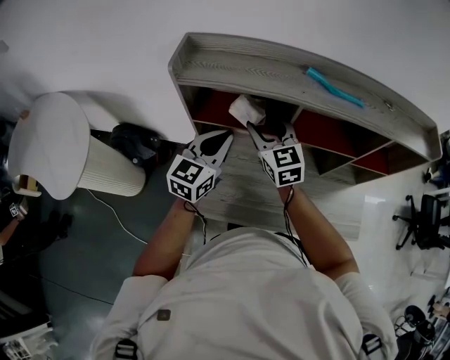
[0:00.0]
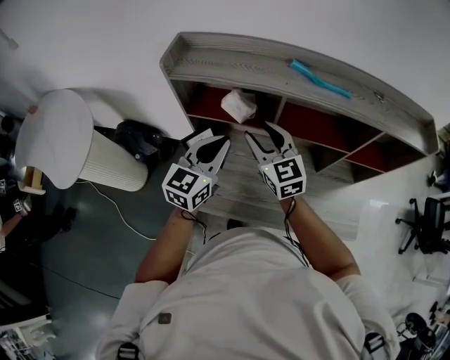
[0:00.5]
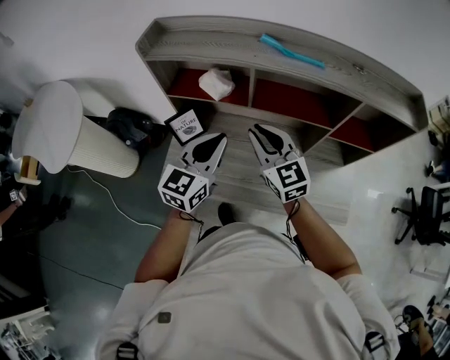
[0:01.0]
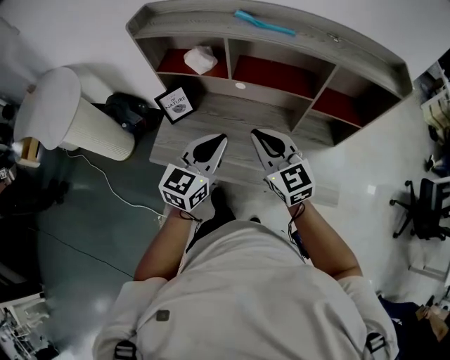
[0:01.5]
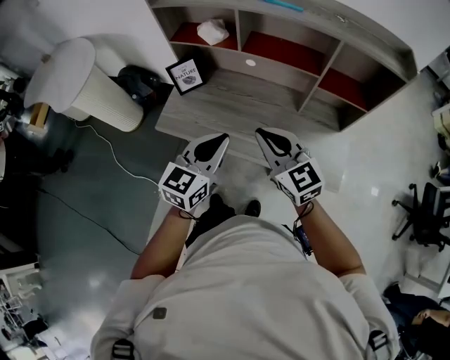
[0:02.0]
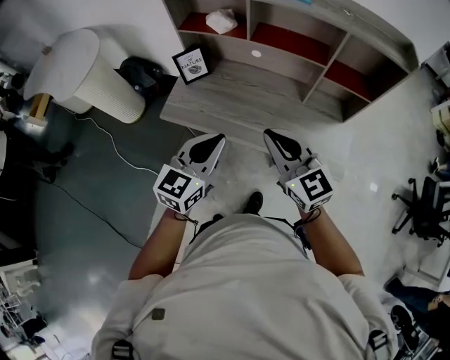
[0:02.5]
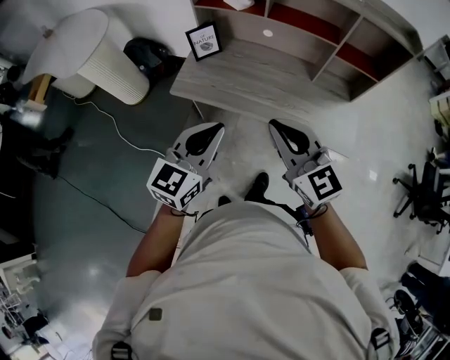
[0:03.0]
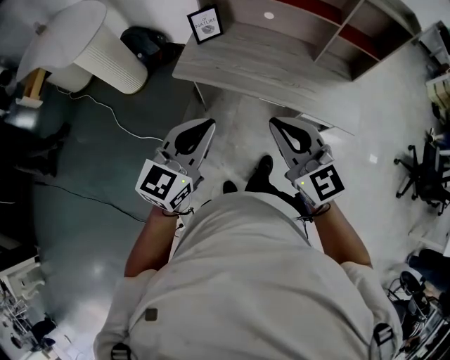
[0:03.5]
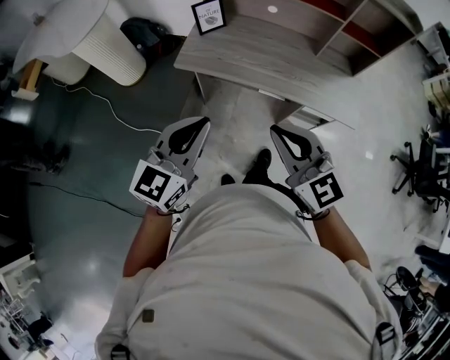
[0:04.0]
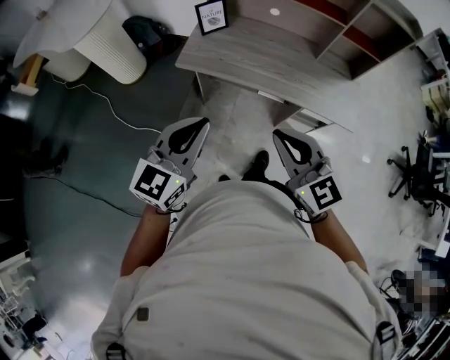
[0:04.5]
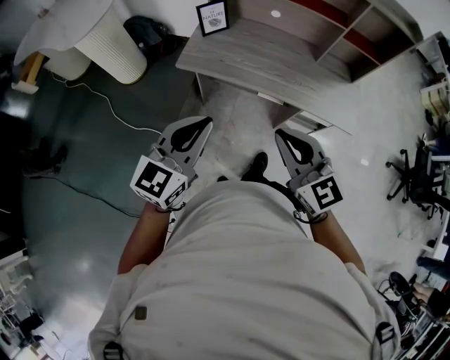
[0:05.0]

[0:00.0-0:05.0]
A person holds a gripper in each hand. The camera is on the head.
0:00.0 to 0:02.5: The two grippers travel together, backward, about 40 cm. The right gripper rotates some 20 degrees, and closes up.
0:02.5 to 0:05.0: The right gripper goes some 25 cm backward and to the left. Meanwhile the left gripper moves to the left and backward, approximately 25 cm.

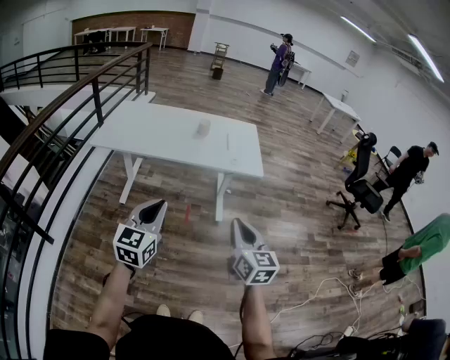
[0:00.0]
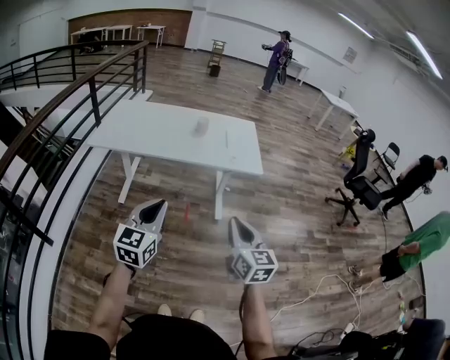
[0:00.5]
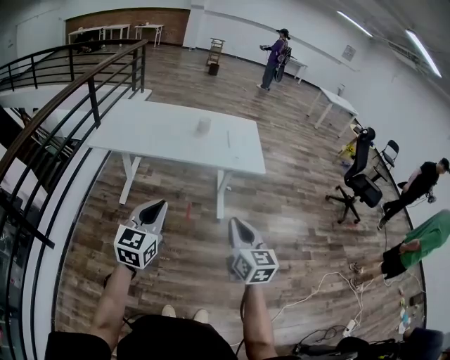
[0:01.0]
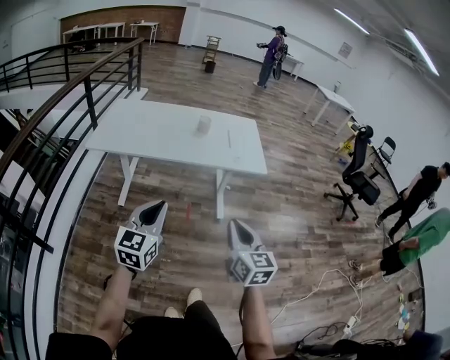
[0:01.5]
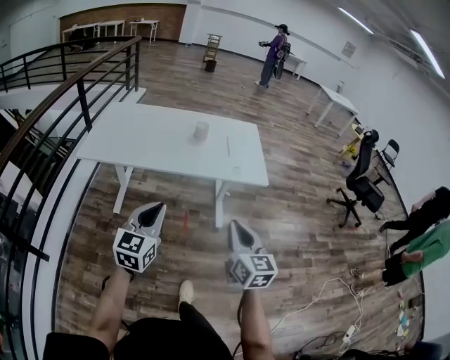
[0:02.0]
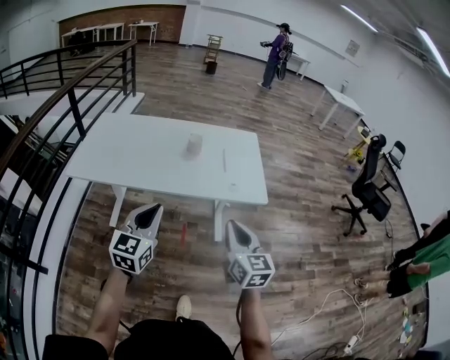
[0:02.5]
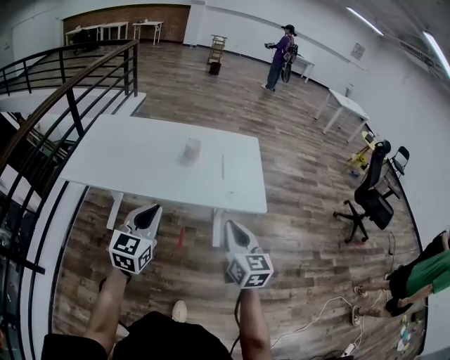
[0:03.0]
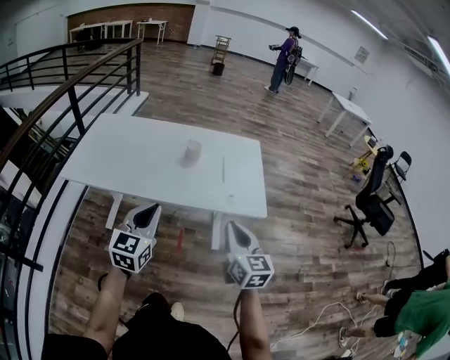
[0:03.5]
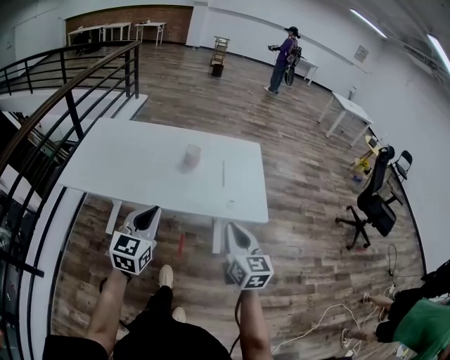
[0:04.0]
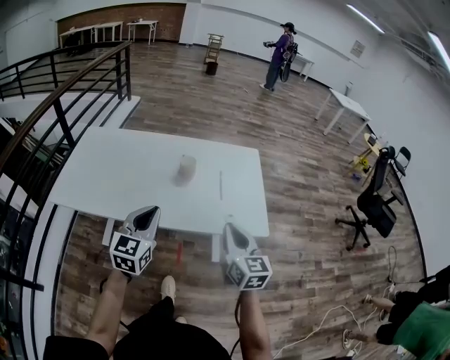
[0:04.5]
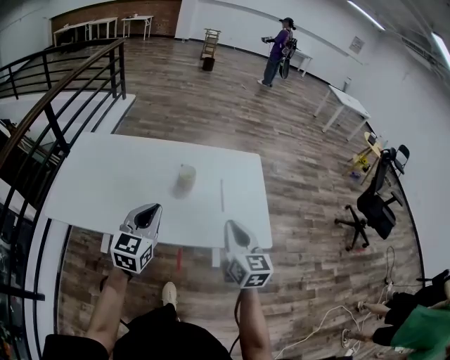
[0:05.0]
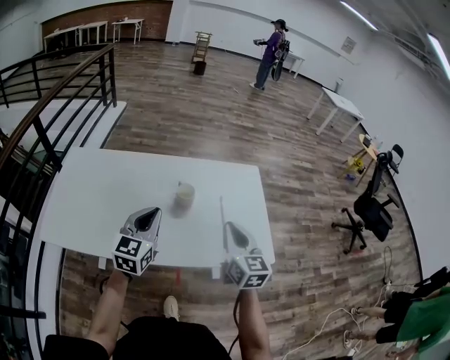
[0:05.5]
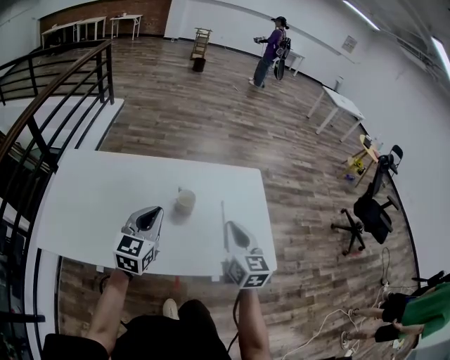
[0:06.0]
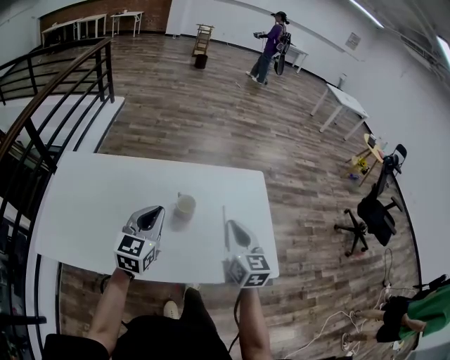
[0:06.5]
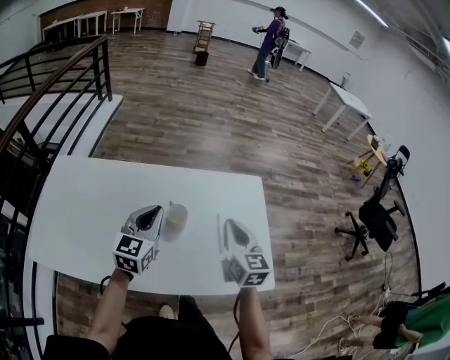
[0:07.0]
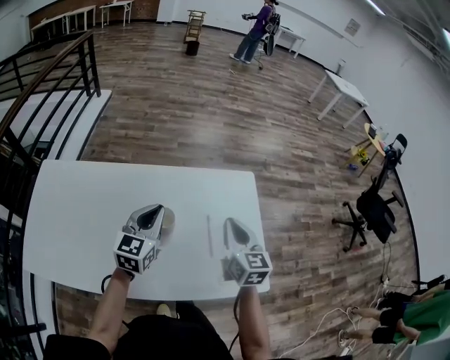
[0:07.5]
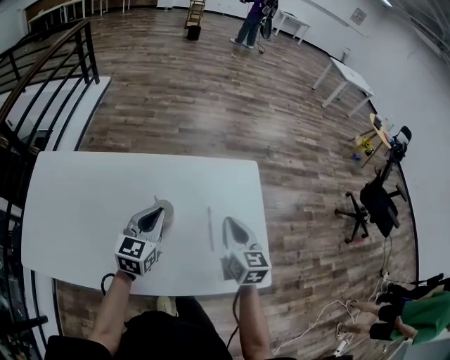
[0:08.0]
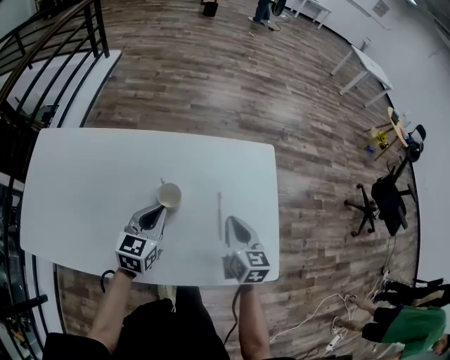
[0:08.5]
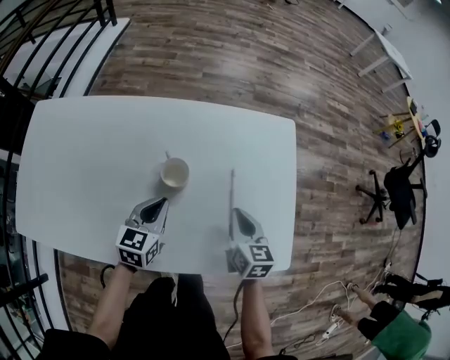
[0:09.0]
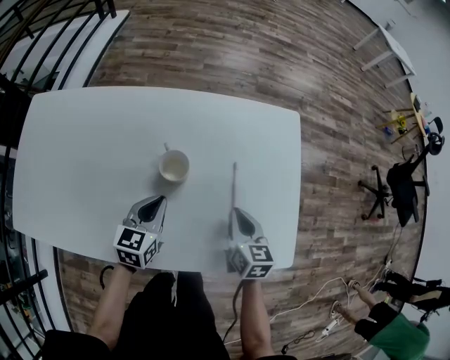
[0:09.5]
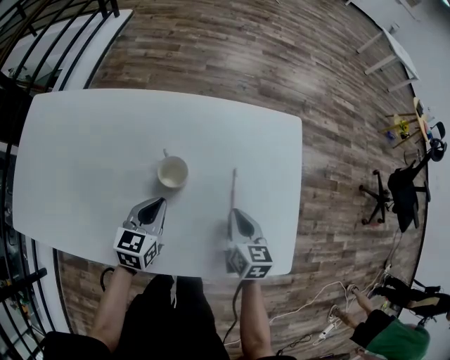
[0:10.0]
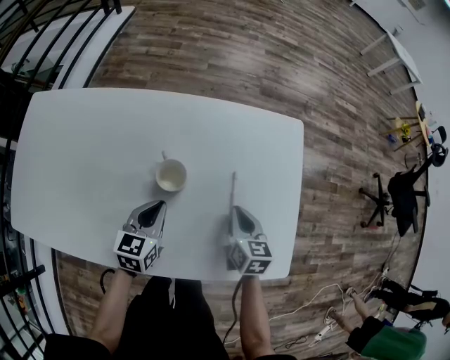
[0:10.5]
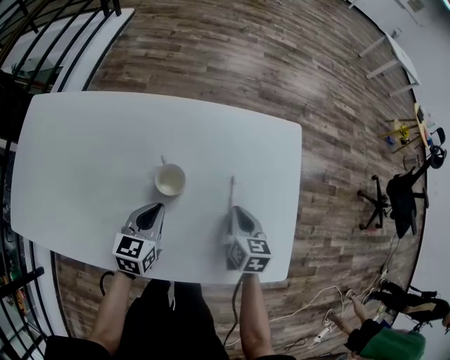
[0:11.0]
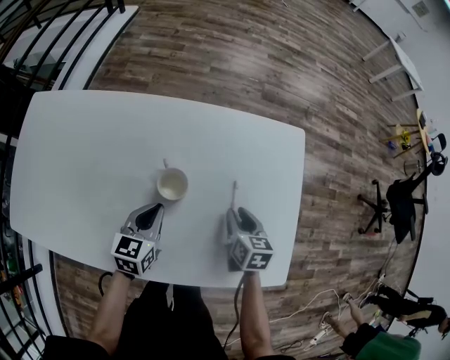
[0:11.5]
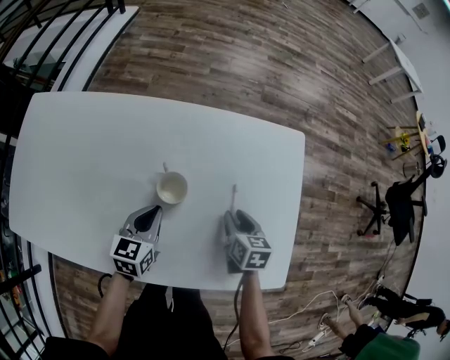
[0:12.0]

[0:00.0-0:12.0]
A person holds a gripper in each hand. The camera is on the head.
0:00.0 to 0:02.0: Both grippers travel together forward, some 15 cm.
0:02.0 to 0:04.0: The two grippers go roughly 20 cm forward.
0:04.0 to 0:06.0: Both grippers move forward, approximately 30 cm.
0:06.0 to 0:08.0: Both grippers move forward, downward and to the right, some 20 cm.
0:08.0 to 0:10.0: Both grippers move downward, roughly 15 cm.
0:10.0 to 0:12.0: The right gripper goes about 5 cm downward, and opens up.

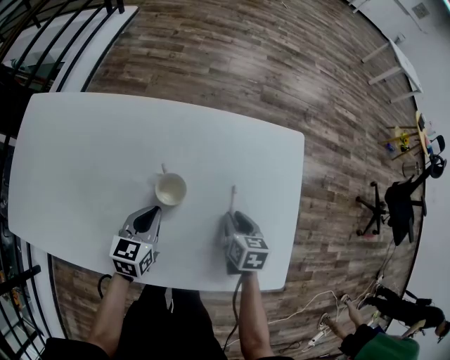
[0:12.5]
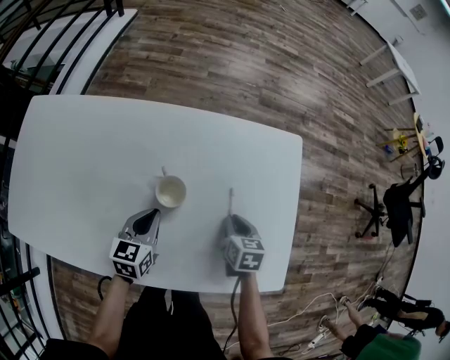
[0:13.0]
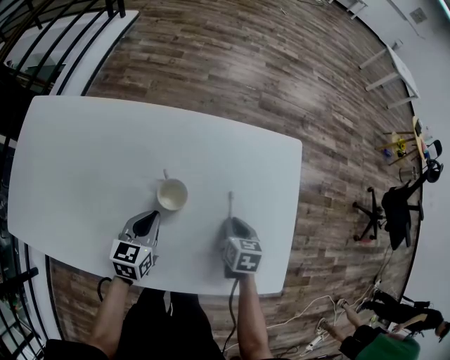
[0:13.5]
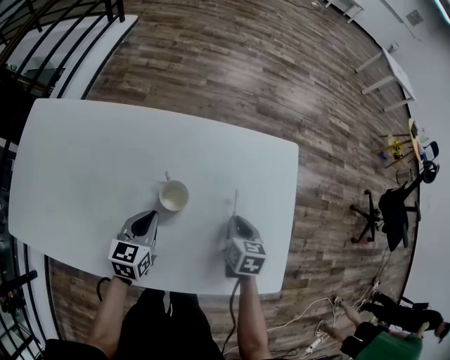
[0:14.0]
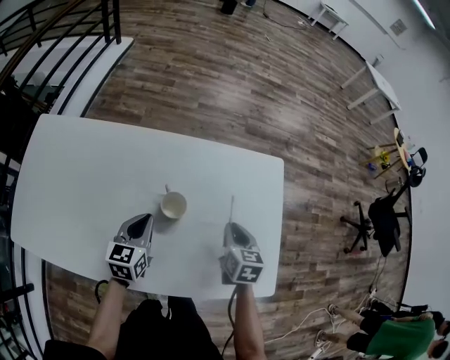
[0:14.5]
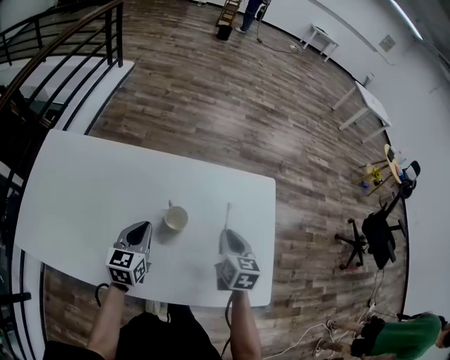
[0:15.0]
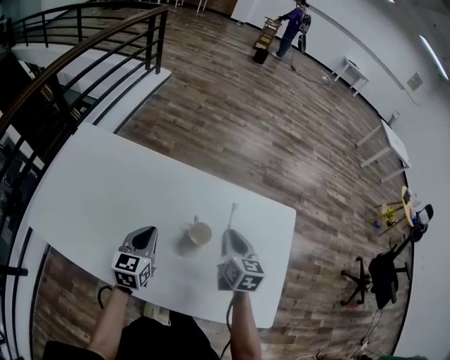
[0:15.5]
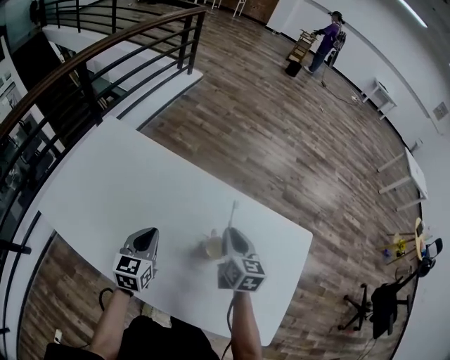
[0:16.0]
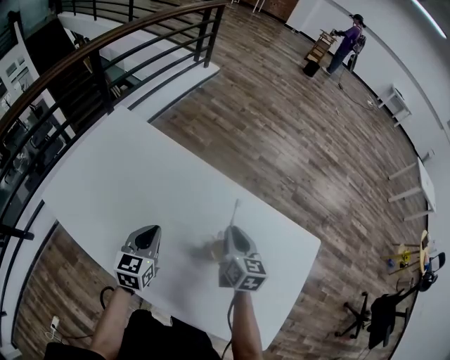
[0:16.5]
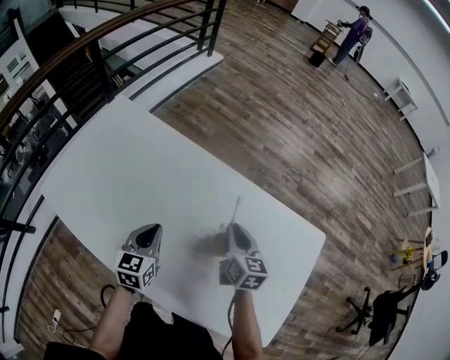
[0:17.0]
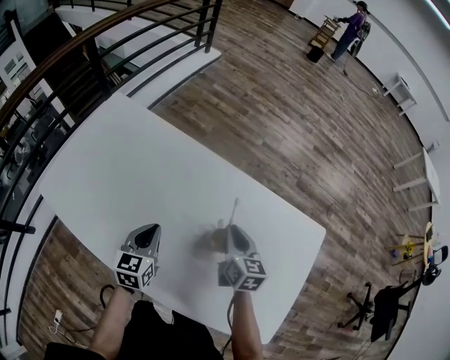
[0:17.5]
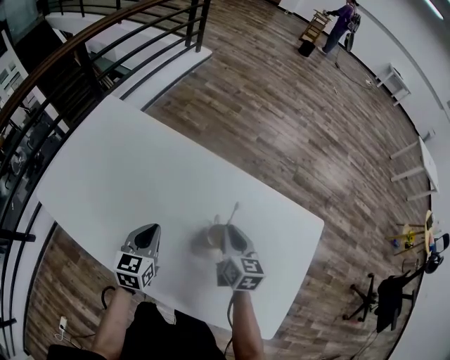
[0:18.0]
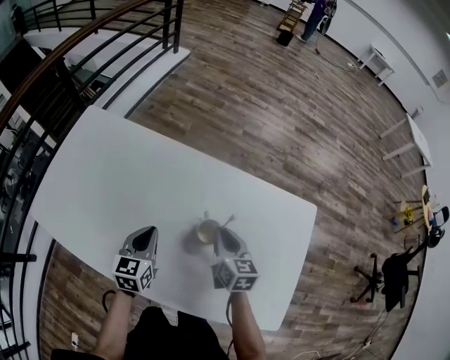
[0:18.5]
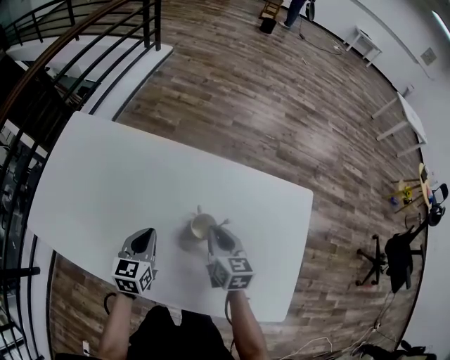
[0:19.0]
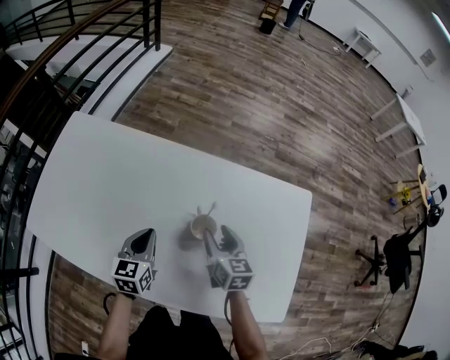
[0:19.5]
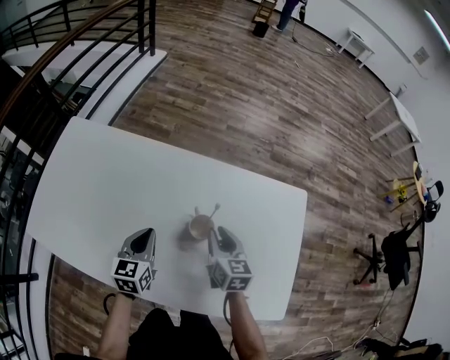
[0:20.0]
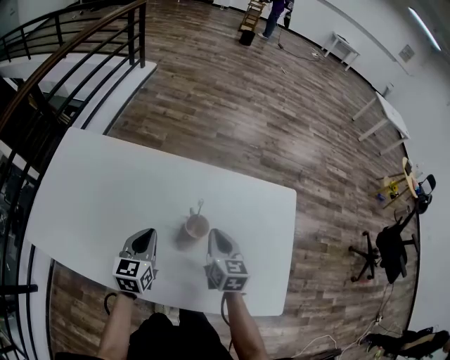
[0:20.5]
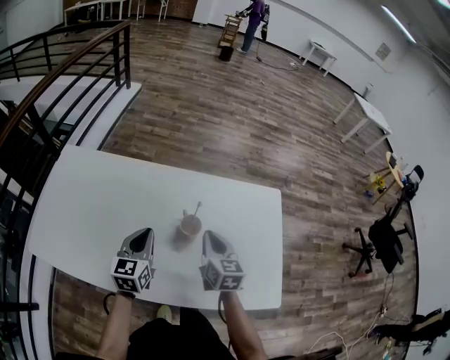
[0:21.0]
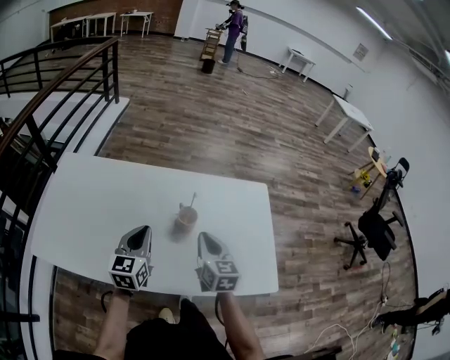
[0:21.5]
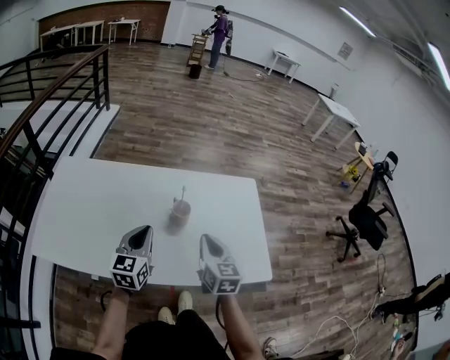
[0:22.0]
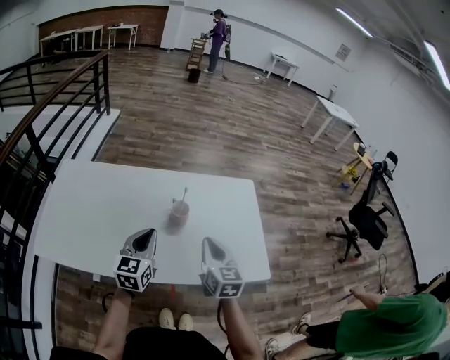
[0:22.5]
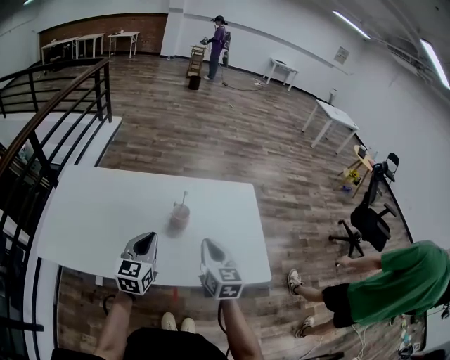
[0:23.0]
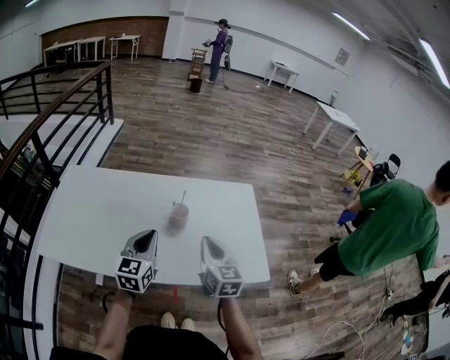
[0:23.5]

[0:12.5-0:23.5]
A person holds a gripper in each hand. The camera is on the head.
0:12.5 to 0:14.5: The right gripper shifts approximately 10 cm upward. The left gripper travels upward by roughly 5 cm.
0:14.5 to 0:16.0: The right gripper heads to the left, forward and upward, covering roughly 25 cm, and changes its angle by some 30 degrees. The left gripper heads to the left and upward, covering some 15 cm, and turns by some 20 degrees.
0:16.0 to 0:18.0: The two grippers go approximately 5 cm downward.
0:18.0 to 0:20.0: The right gripper opens, then closes again.
0:20.0 to 0:21.5: The right gripper moves backward and upward, about 15 cm, and closes its fingers. The left gripper travels upward and backward by approximately 15 cm.
0:21.5 to 0:23.5: Both grippers travel together backward and upward, roughly 10 cm.
